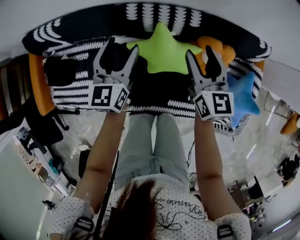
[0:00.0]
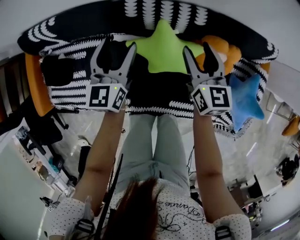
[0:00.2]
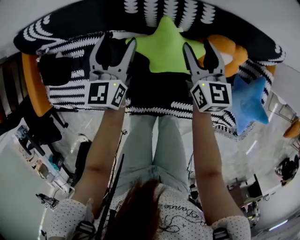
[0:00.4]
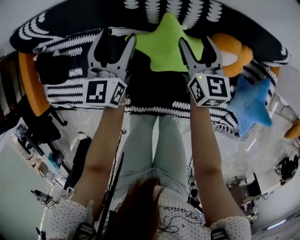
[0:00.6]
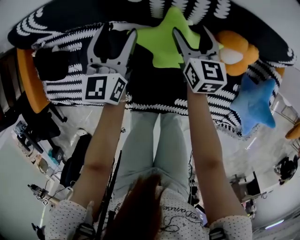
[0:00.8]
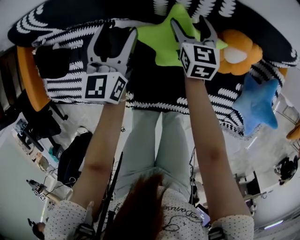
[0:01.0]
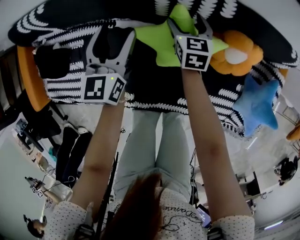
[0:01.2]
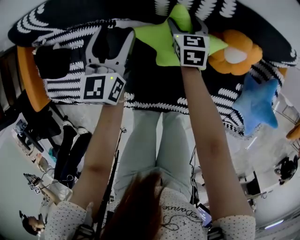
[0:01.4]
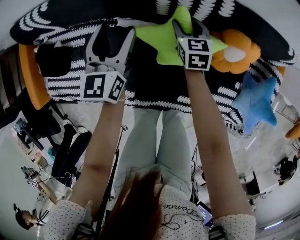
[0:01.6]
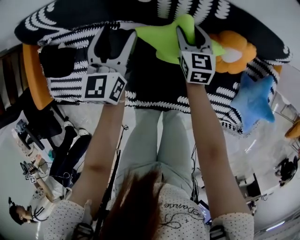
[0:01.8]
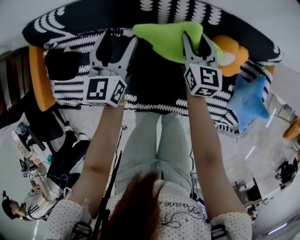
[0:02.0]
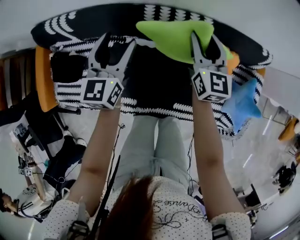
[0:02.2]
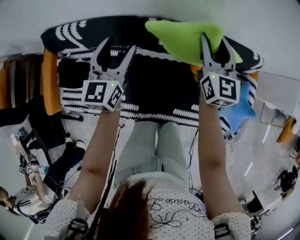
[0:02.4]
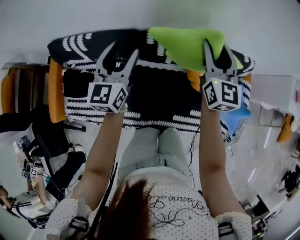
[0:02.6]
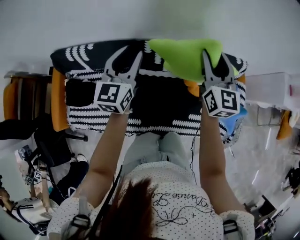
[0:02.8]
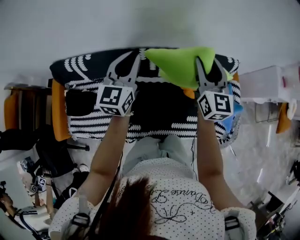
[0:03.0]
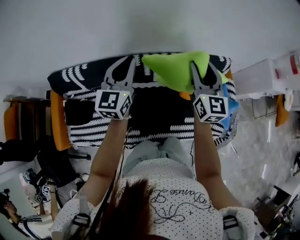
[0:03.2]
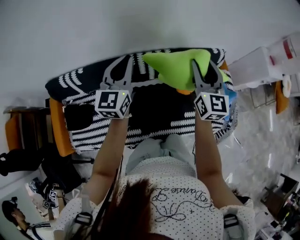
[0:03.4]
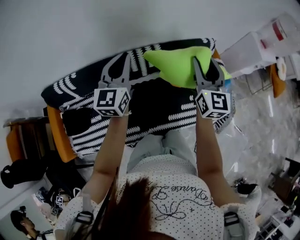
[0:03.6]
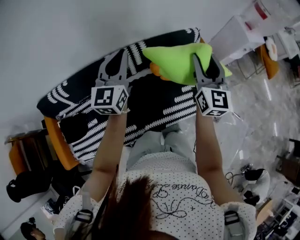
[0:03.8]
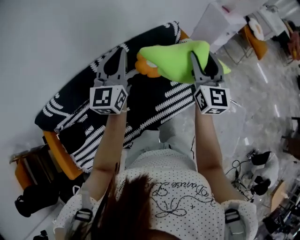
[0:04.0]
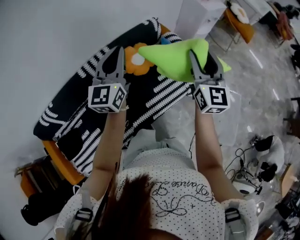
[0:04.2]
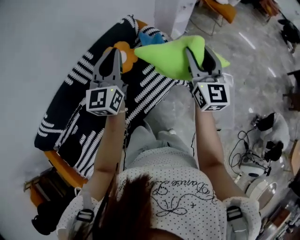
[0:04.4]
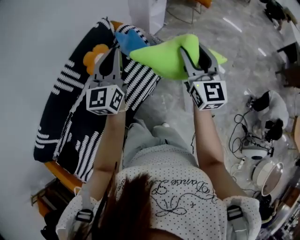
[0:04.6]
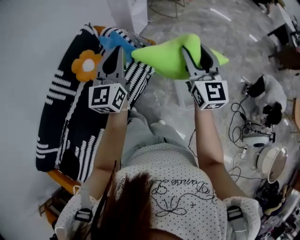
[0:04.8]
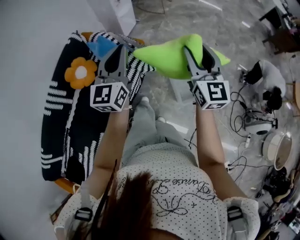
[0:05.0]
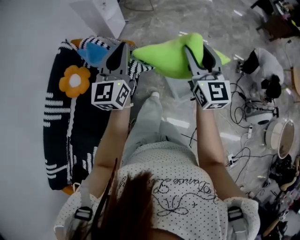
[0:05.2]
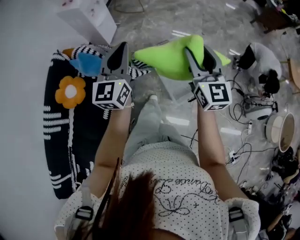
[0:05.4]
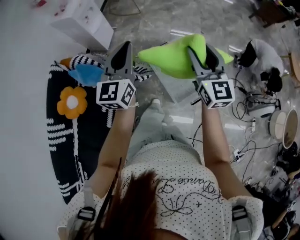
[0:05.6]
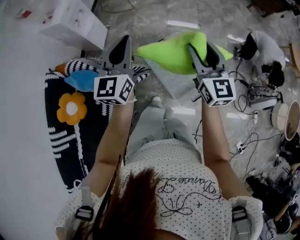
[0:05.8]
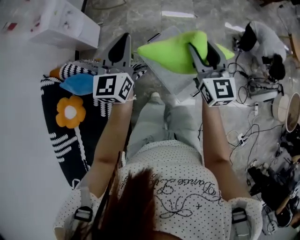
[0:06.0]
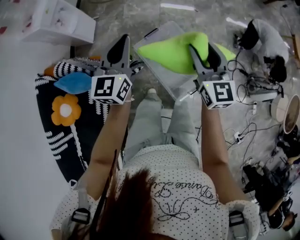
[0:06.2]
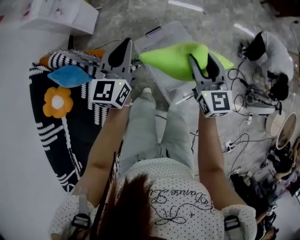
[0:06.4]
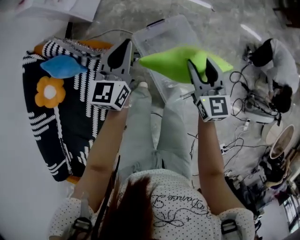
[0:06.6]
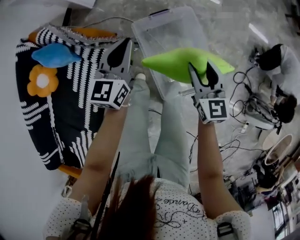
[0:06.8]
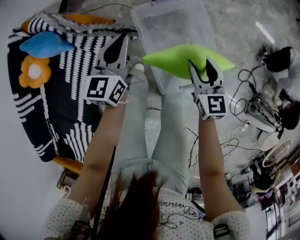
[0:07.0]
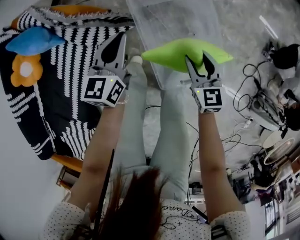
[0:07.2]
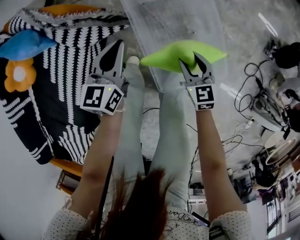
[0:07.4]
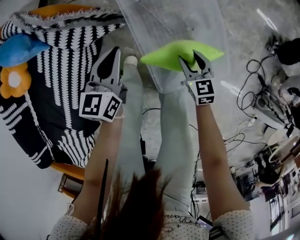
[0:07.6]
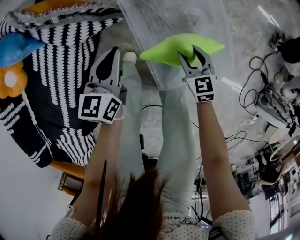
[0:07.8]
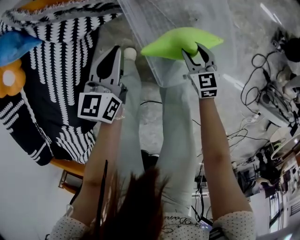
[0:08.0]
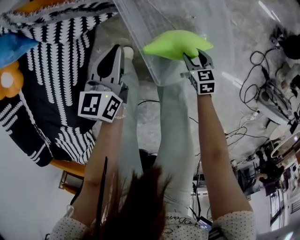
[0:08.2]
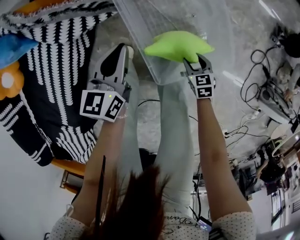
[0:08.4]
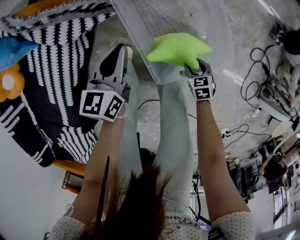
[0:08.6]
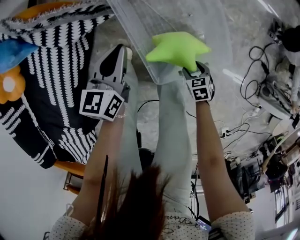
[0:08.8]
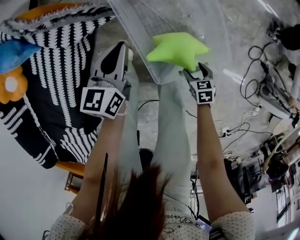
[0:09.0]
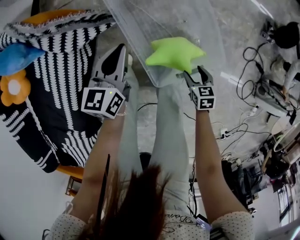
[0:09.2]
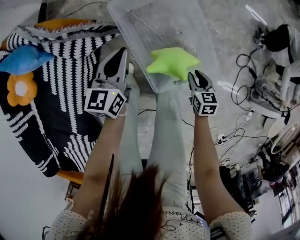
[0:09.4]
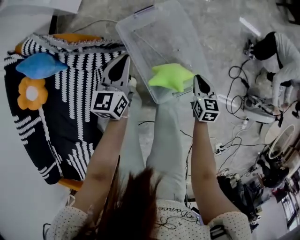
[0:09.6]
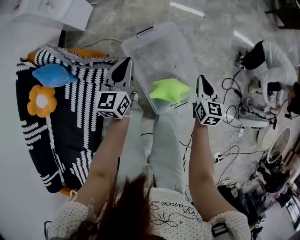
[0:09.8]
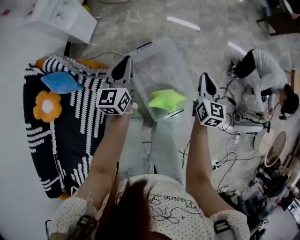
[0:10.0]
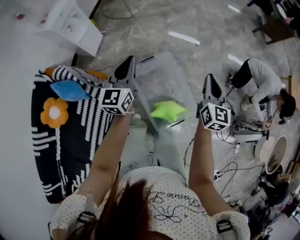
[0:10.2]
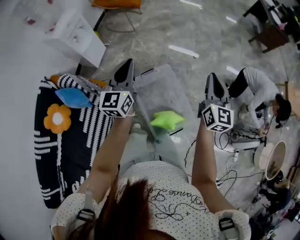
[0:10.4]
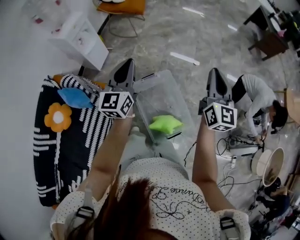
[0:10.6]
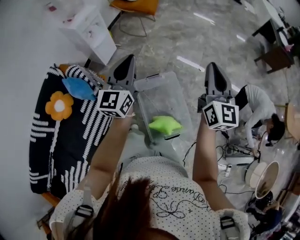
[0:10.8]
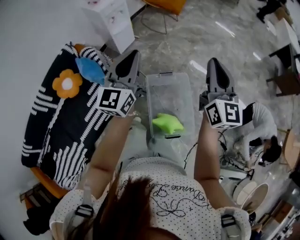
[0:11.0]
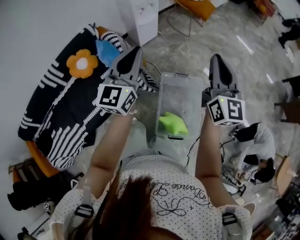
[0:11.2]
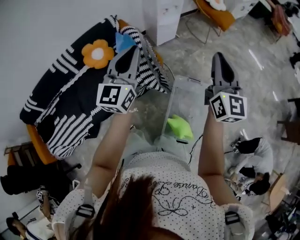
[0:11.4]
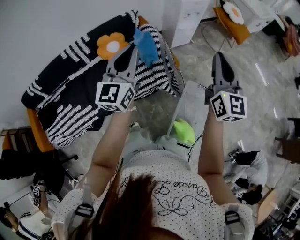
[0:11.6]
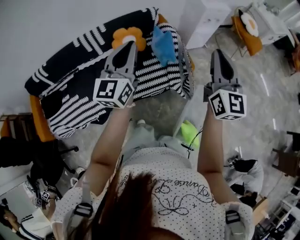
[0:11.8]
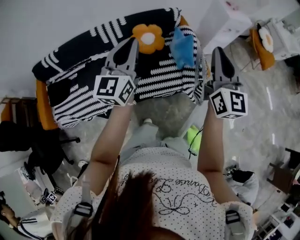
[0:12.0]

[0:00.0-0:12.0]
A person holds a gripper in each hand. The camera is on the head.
0:00.0 to 0:01.6: The right gripper travels downward by roughly 25 cm, and turns by about 20 degrees. Meanwhile the left gripper moves downward and to the left, approximately 10 cm.
0:01.6 to 0:03.0: The two grippers go about 40 cm upward. The left gripper swivels some 20 degrees, and closes. The right gripper points its fingers some 40 degrees further upward.
0:03.0 to 0:04.4: The two grippers travel together, some 50 cm. The right gripper changes its angle by roughly 40 degrees; the left gripper changes its angle by approximately 40 degrees.
0:04.4 to 0:06.0: The two grippers travel together, some 50 cm. The right gripper turns by approximately 40 degrees; the left gripper turns by approximately 50 degrees.
0:06.0 to 0:07.6: The two grippers go roughly 50 cm downward. The left gripper turns by roughly 30 degrees; the right gripper tips its fingers downward by approximately 30 degrees.
0:07.6 to 0:09.0: The left gripper changes place by roughly 5 cm; the right gripper heads backward and downward, covering some 20 cm, swivels roughly 30 degrees, and opens.
0:09.0 to 0:10.4: The two grippers go some 60 cm upward. The right gripper tilts its fingers roughly 60 degrees upward, and closes. The left gripper rotates about 30 degrees.
0:10.4 to 0:12.0: Both grippers are carried some 70 cm. The right gripper swivels approximately 70 degrees. The left gripper changes its angle by approximately 60 degrees.

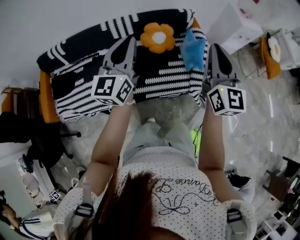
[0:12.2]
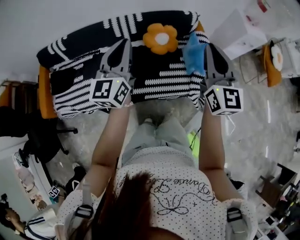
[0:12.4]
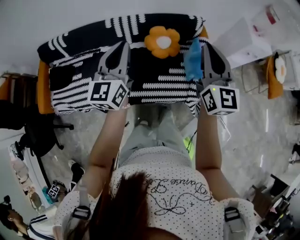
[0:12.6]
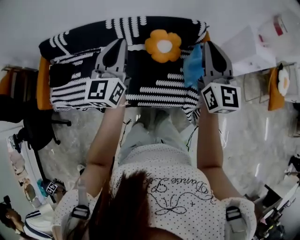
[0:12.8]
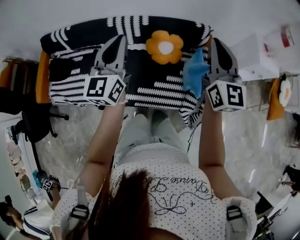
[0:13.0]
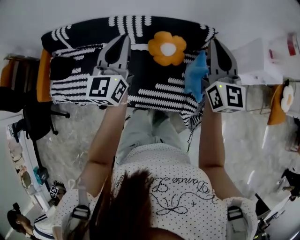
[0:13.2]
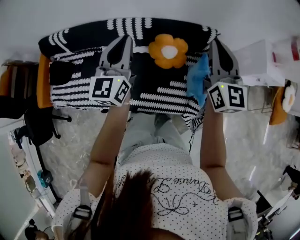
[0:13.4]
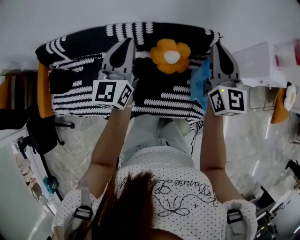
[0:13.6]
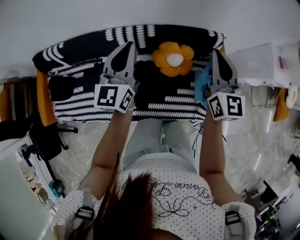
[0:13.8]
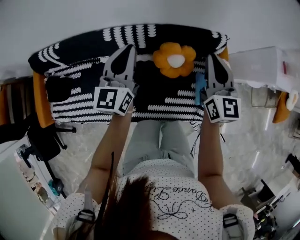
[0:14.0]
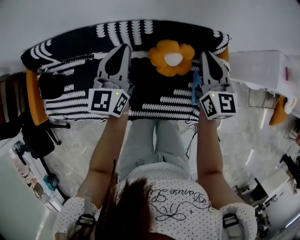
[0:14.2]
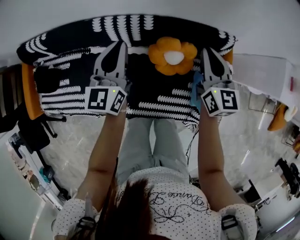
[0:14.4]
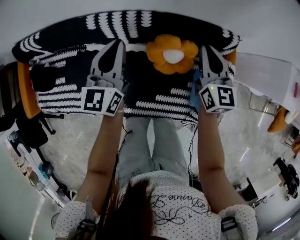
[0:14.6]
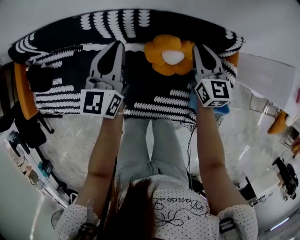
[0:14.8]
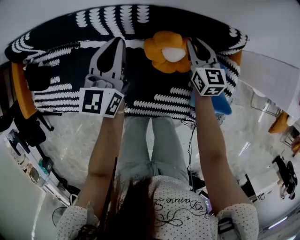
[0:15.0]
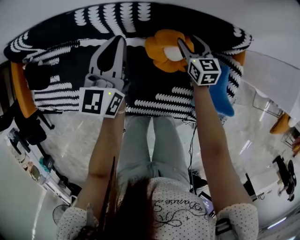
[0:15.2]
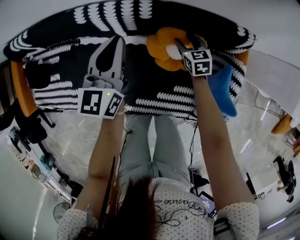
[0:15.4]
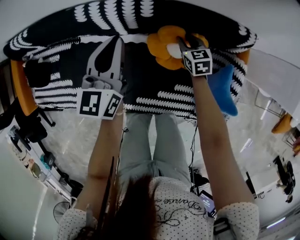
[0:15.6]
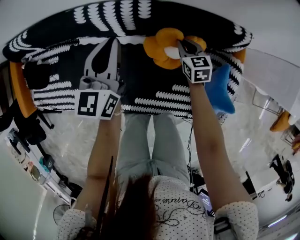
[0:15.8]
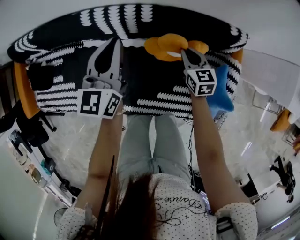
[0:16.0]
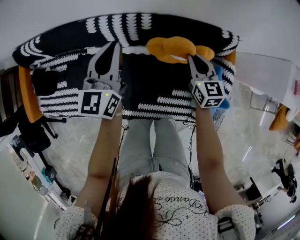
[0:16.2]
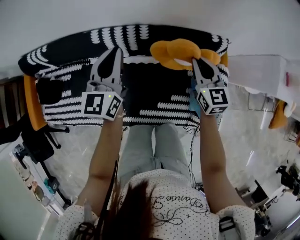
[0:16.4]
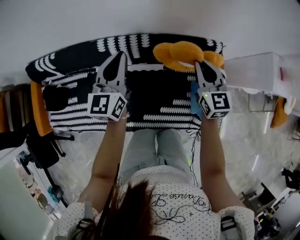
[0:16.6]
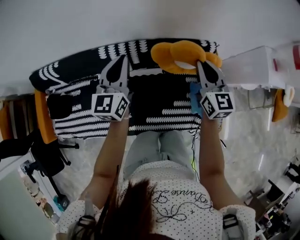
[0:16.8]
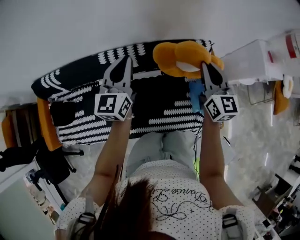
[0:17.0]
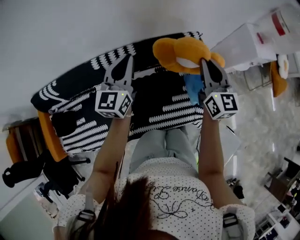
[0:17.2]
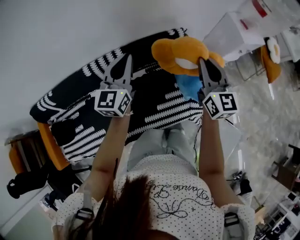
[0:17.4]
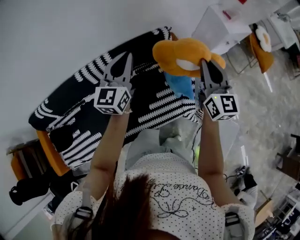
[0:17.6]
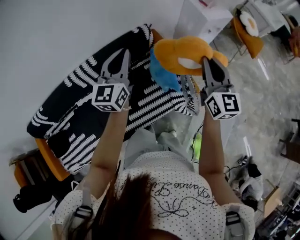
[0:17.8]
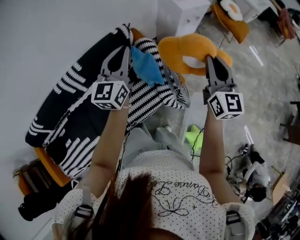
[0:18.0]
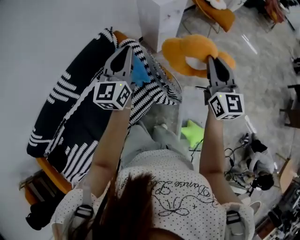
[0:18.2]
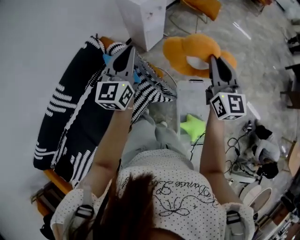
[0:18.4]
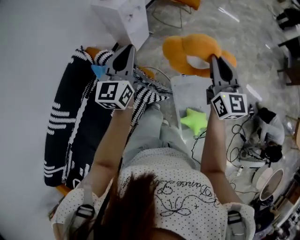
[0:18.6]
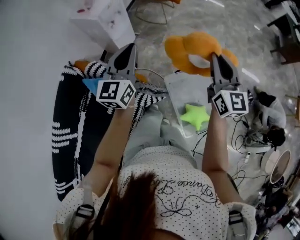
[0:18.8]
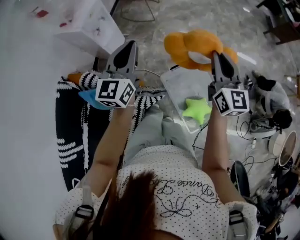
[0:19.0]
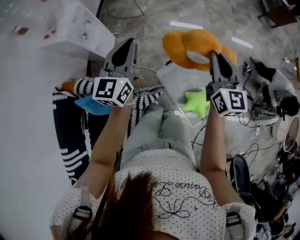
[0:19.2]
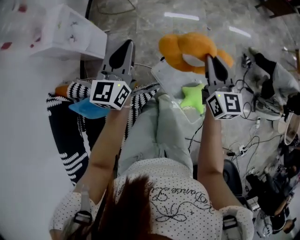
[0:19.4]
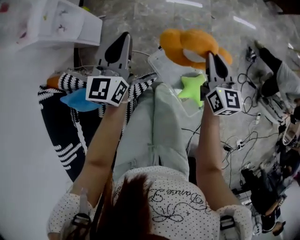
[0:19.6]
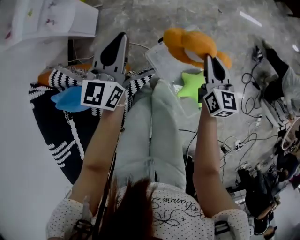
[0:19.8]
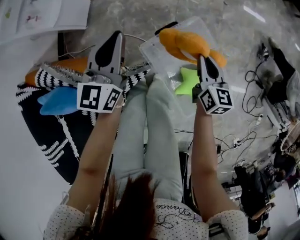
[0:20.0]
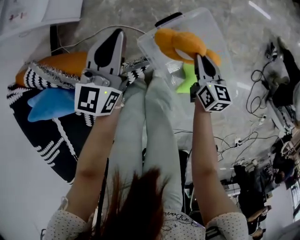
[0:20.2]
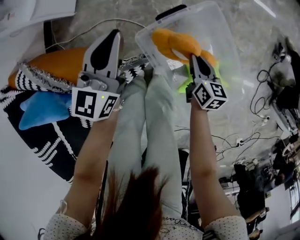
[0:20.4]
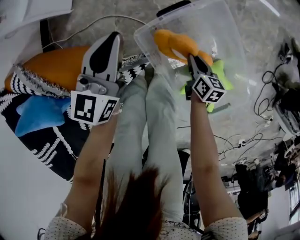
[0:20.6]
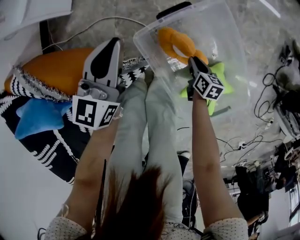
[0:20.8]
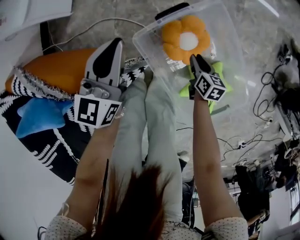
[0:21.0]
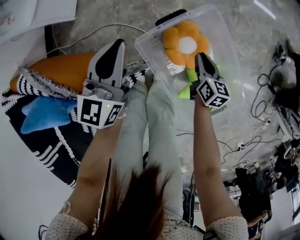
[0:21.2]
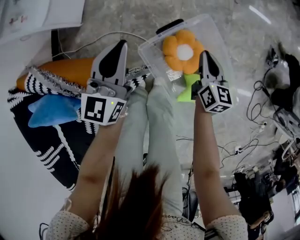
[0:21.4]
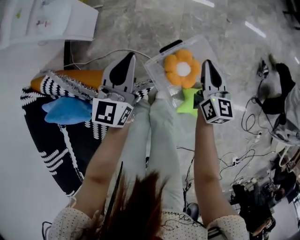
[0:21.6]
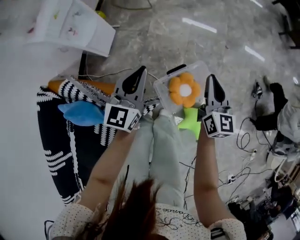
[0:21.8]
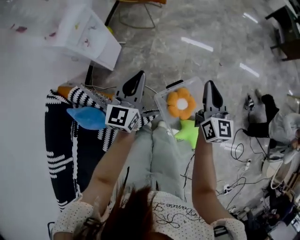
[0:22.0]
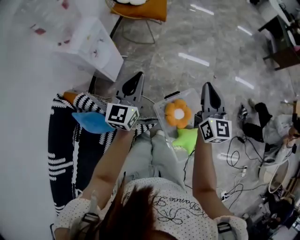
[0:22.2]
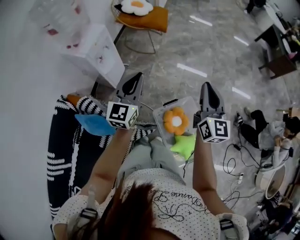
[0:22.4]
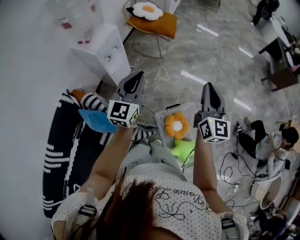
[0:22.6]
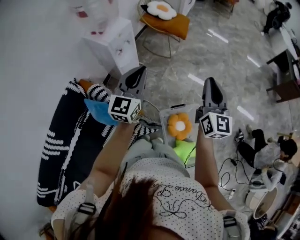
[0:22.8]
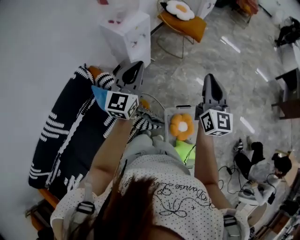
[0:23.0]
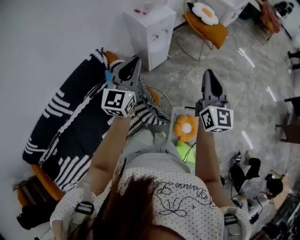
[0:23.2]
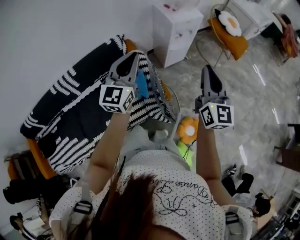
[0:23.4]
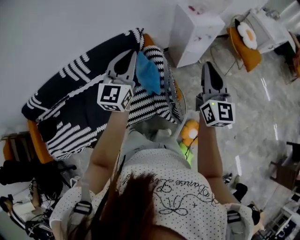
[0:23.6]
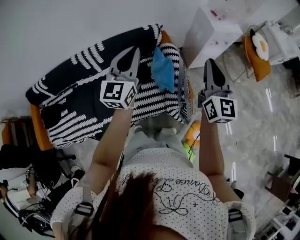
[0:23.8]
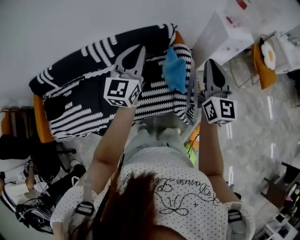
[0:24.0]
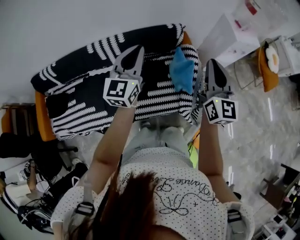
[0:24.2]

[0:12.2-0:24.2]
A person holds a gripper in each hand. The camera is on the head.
0:12.2 to 0:13.8: Both grippers travel together forward, about 35 cm.
0:13.8 to 0:15.2: The left gripper goes approximately 25 cm downward and forward, while the right gripper moves downward, about 40 cm, turns by some 40 degrees, and opens.
0:15.2 to 0:16.6: The left gripper heads upward, covering approximately 15 cm, while the right gripper goes about 30 cm upward, turns by approximately 20 degrees, and closes.
0:16.6 to 0:18.2: The two grippers travel together, roughly 60 cm. The right gripper swivels about 50 degrees. The left gripper turns by about 50 degrees.
0:18.2 to 0:19.8: The left gripper moves about 50 cm, and swivels about 50 degrees, while the right gripper goes roughly 35 cm downward, and rotates roughly 50 degrees.
0:19.8 to 0:21.2: The two grippers go about 30 cm downward. The right gripper rotates some 20 degrees.
0:21.2 to 0:22.6: The grippers both shift upward by roughly 60 cm. The left gripper changes its angle by approximately 20 degrees. The right gripper tilts its fingers some 40 degrees upward.
0:22.6 to 0:24.2: Both grippers are carried approximately 60 cm. The left gripper swivels some 60 degrees; the right gripper swivels roughly 60 degrees.
